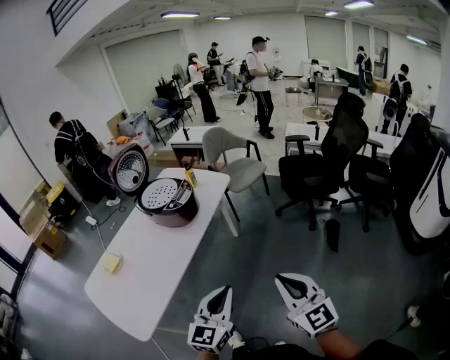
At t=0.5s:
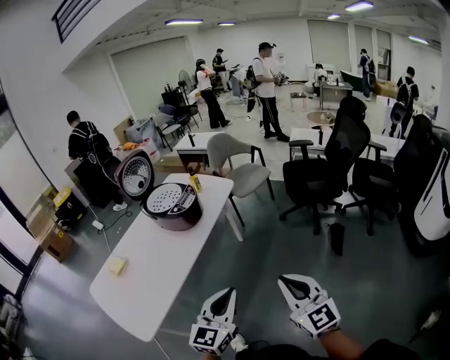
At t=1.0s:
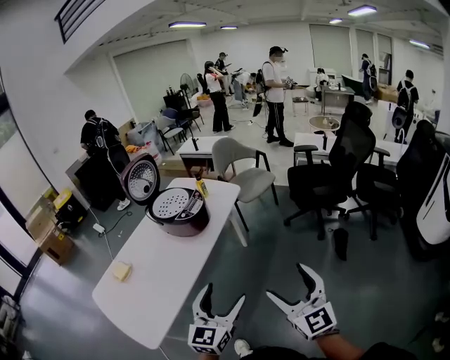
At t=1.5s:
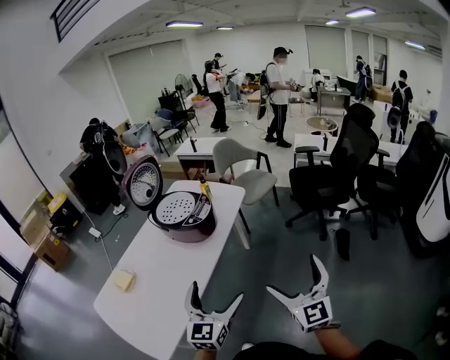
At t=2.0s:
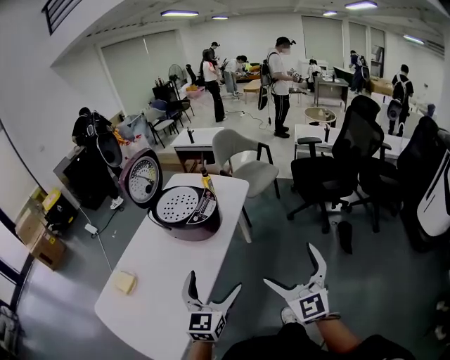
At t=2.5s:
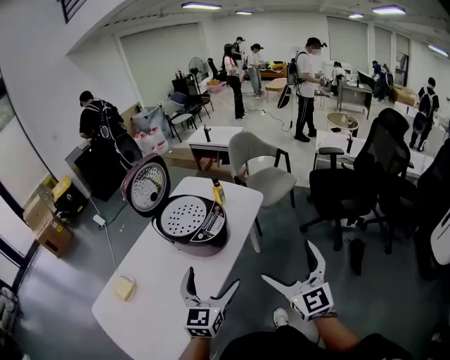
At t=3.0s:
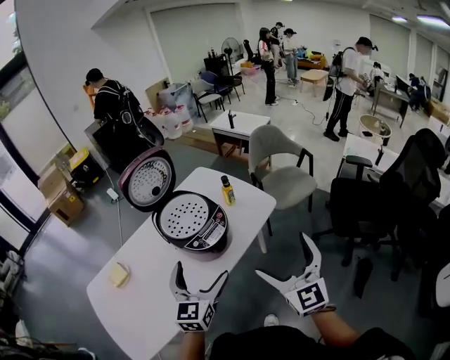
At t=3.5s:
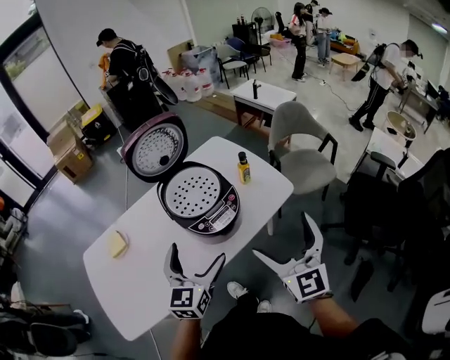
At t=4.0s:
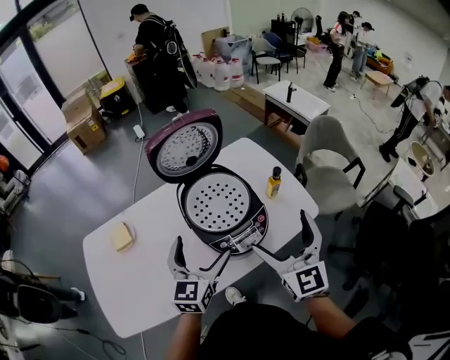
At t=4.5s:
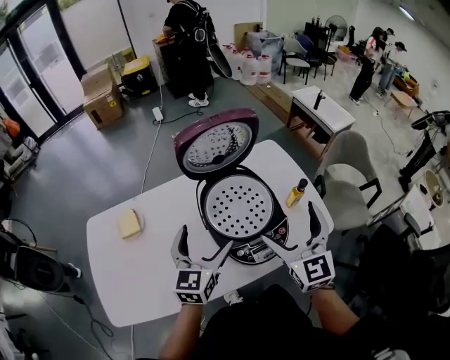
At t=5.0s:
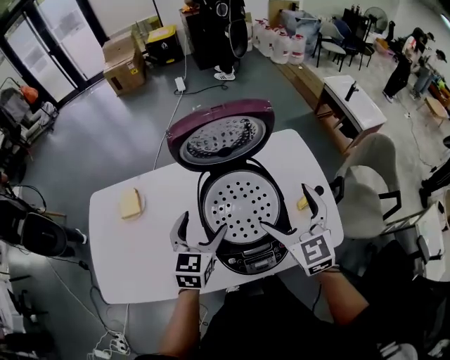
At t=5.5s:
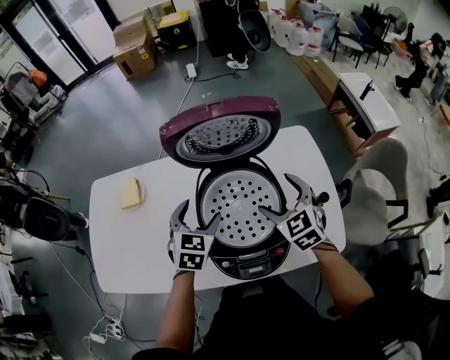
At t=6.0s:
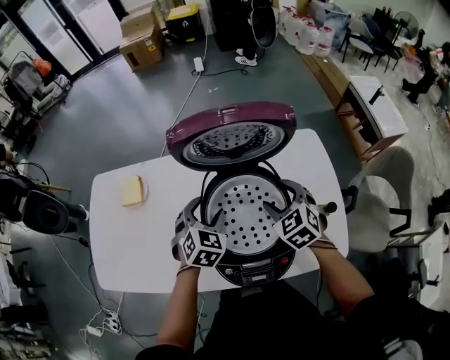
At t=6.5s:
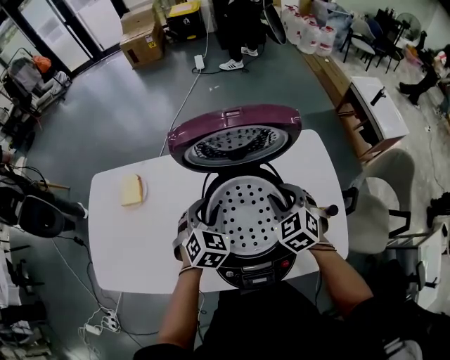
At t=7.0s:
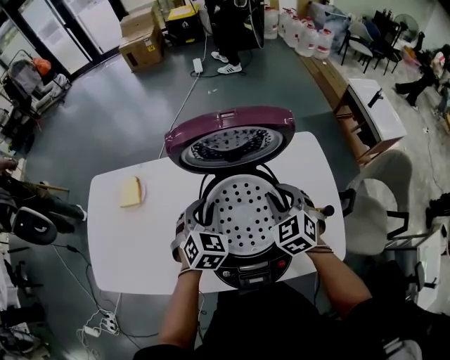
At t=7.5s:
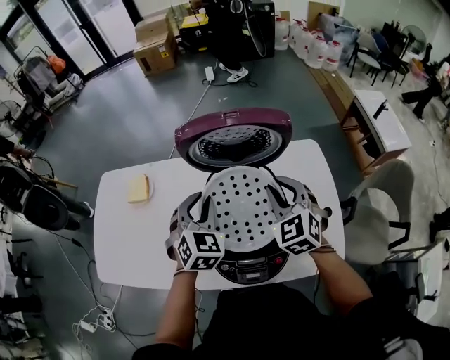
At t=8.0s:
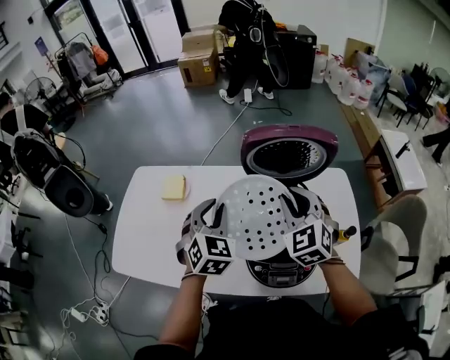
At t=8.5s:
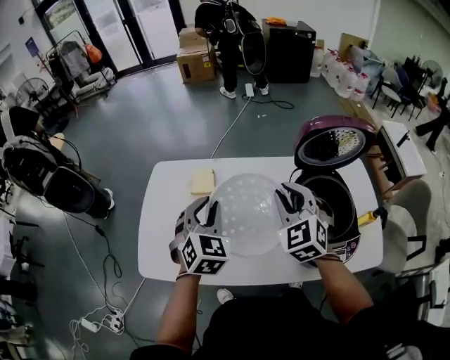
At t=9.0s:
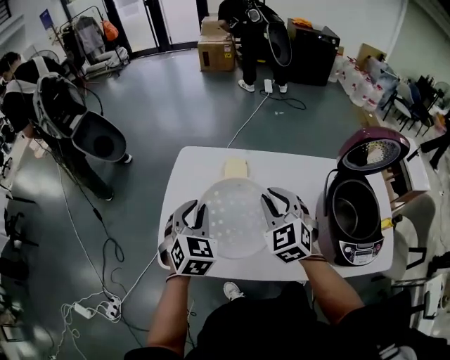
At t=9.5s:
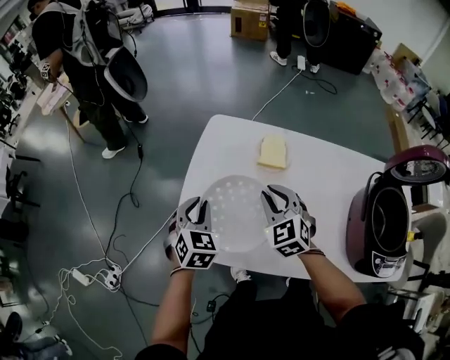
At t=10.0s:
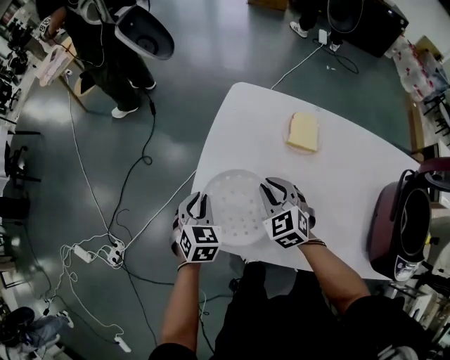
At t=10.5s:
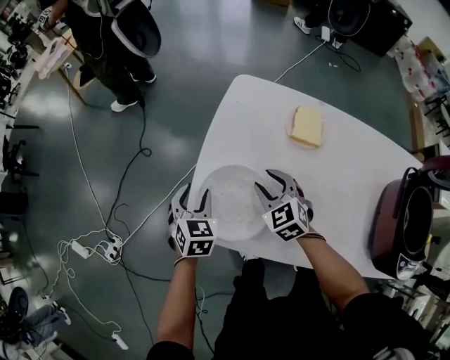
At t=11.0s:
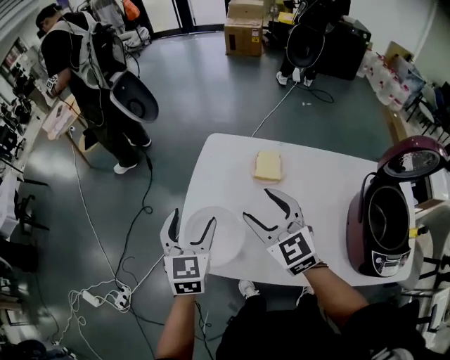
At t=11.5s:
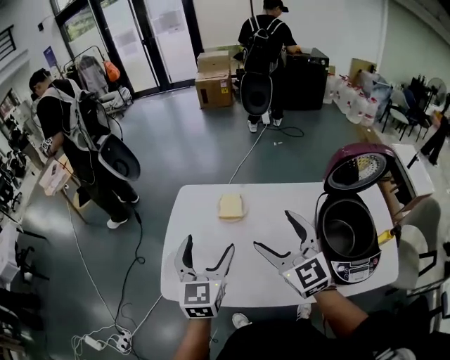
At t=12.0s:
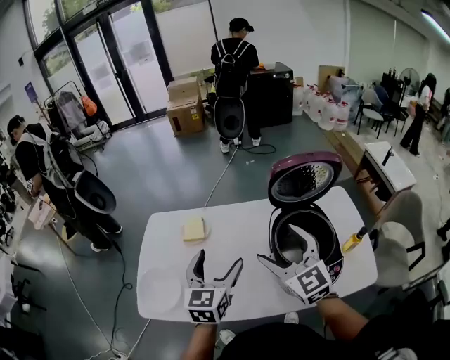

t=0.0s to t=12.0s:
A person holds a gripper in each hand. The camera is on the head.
t=0.0s to t=2.0s: The right gripper travels forward and to the left by some 20 cm, and opens up. The left gripper moves to the left and forward, about 20 cm, and opens up.
t=2.0s to t=4.0s: The left gripper moves about 35 cm, and turns by some 40 degrees; the right gripper ends up about 40 cm from where it was, and changes its angle by approximately 40 degrees.
t=4.0s to t=6.0s: The right gripper ends up some 35 cm from where it was, points its fingers approximately 40 degrees further downward, and closes its fingers; the left gripper changes place by roughly 20 cm, tips its fingers downward by roughly 30 degrees, and closes up.
t=6.0s to t=8.0s: The grippers both shift upward and to the left by approximately 15 cm. The right gripper swivels about 20 degrees, and closes its fingers.
t=8.0s to t=10.0s: The two grippers travel together, to the left, some 60 cm. Both grippers travel together downward, about 25 cm. The left gripper swivels about 30 degrees; the right gripper turns by approximately 30 degrees.
t=10.0s to t=12.0s: Both grippers are carried about 40 cm. The left gripper angles its fingers upward, by some 30 degrees, and opens up. The right gripper angles its fingers upward, by some 30 degrees, and opens up.

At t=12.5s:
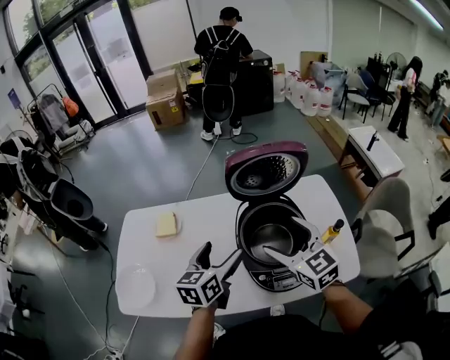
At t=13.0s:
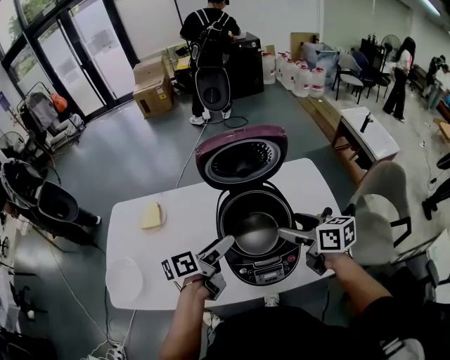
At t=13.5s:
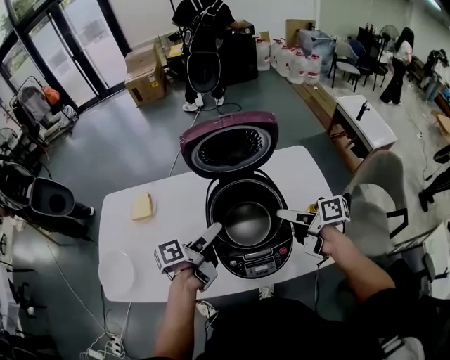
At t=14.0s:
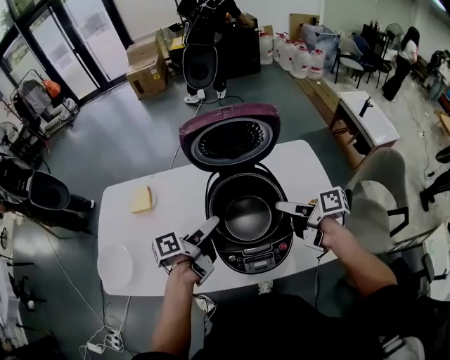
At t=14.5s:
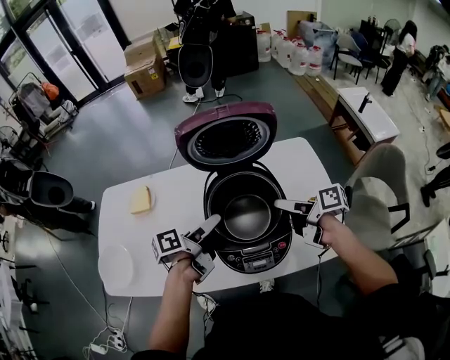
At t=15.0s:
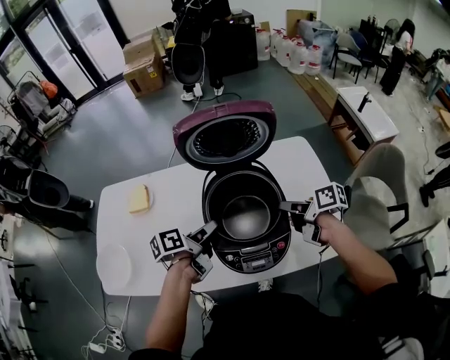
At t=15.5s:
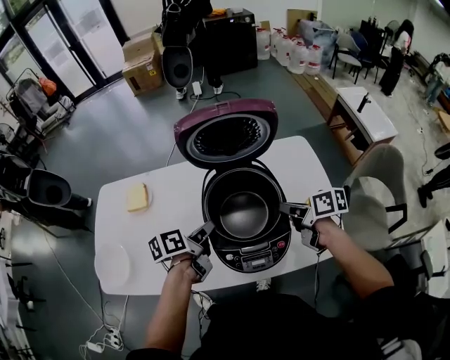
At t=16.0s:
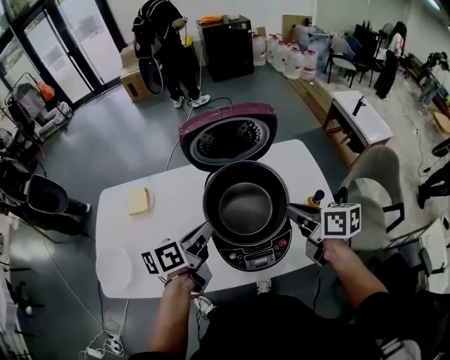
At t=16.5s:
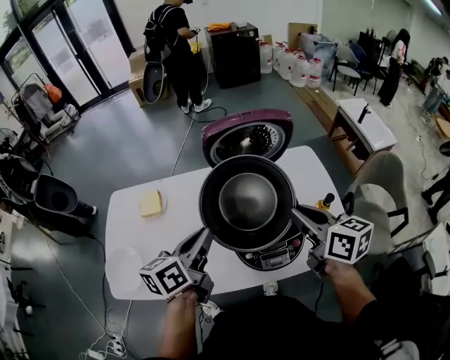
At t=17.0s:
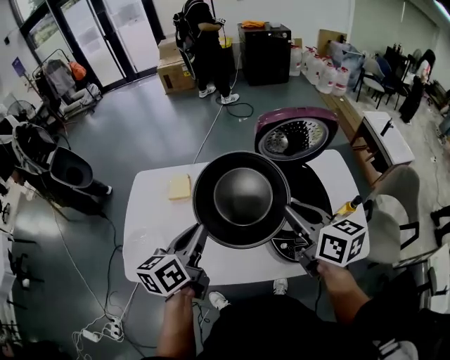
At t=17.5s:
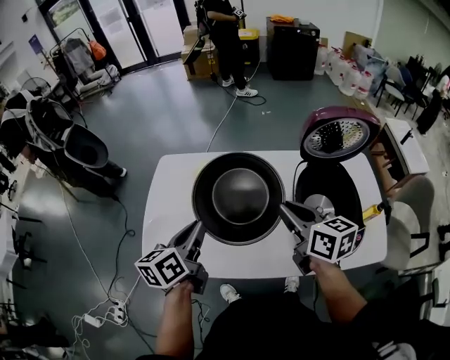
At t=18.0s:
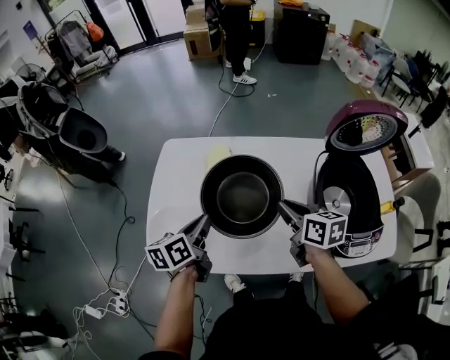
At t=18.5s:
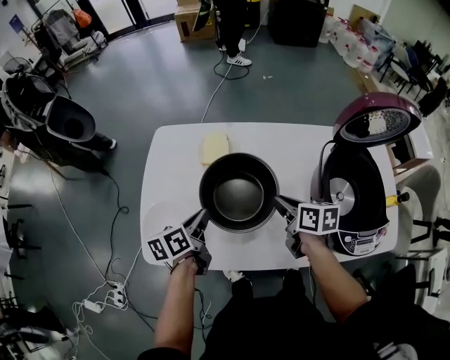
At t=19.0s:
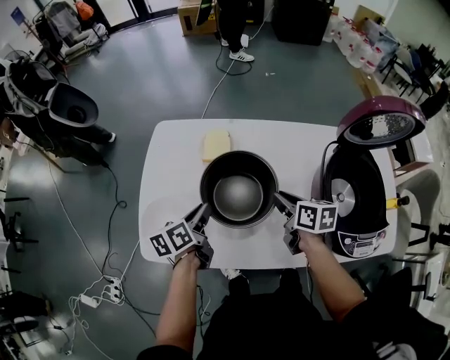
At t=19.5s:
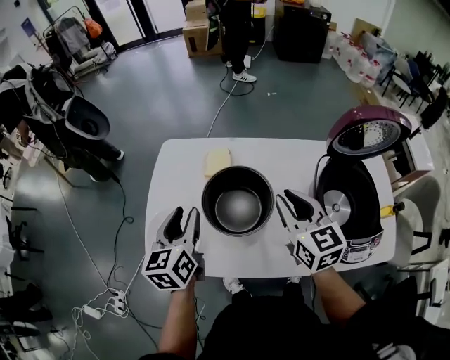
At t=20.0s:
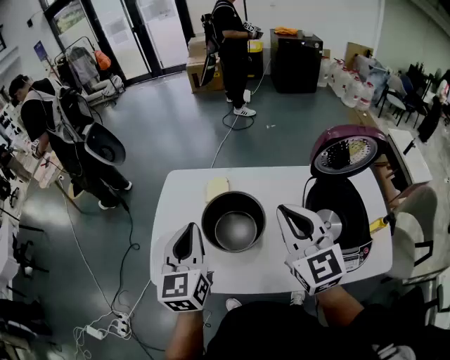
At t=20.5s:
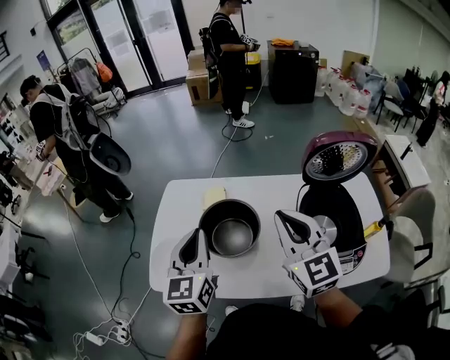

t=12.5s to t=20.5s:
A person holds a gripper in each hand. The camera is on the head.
t=12.5s to t=14.5s: The left gripper is displaced downward and to the right by approximately 10 cm, and rotates around the line of its fingers by some 50 degrees, counterclockwise from behind. Meanwhile the right gripper shifts some 20 cm downward and to the right, and twists some 70 degrees clockwise, seen from behind.
t=14.5s to t=16.5s: The left gripper travels upward and to the left by some 15 cm, changes its angle by about 40 degrees, and closes its fingers. Meanwhile the right gripper shifts some 15 cm upward, rotates roughly 50 degrees, and closes up.
t=16.5s to t=18.5s: Both grippers travel together to the left and downward, approximately 40 cm. The left gripper turns by about 30 degrees. The right gripper rotates about 20 degrees.
t=18.5s to t=20.5s: The two grippers go some 25 cm upward. The right gripper rolls counterclockwise, seen from behind, by approximately 50 degrees; the left gripper turns by roughly 50 degrees.

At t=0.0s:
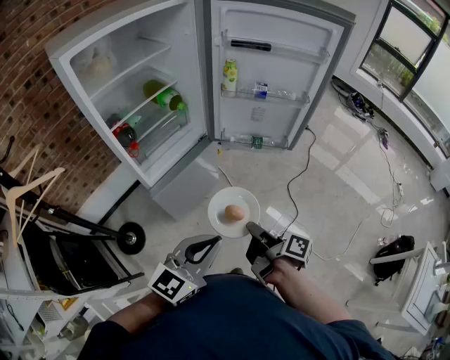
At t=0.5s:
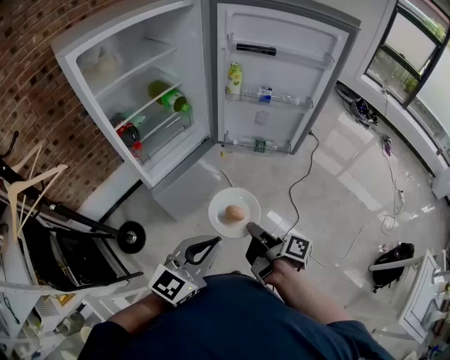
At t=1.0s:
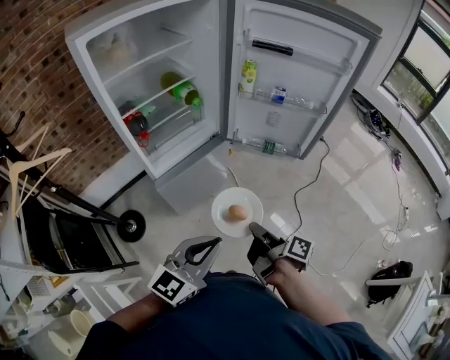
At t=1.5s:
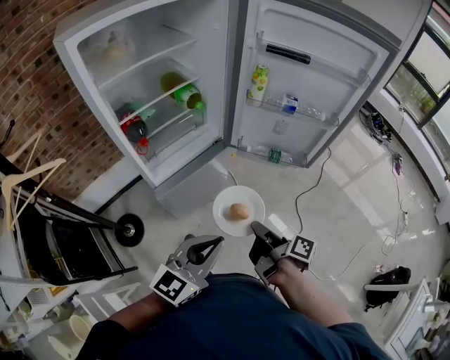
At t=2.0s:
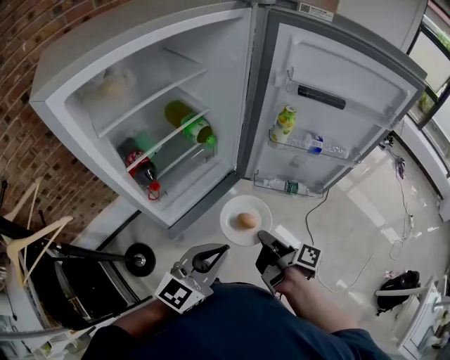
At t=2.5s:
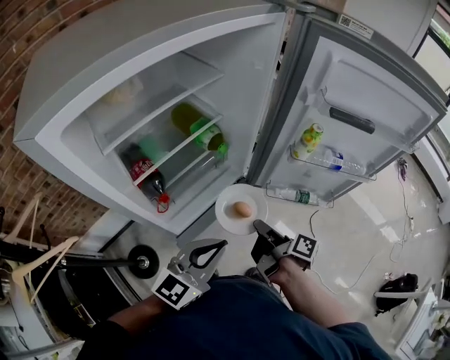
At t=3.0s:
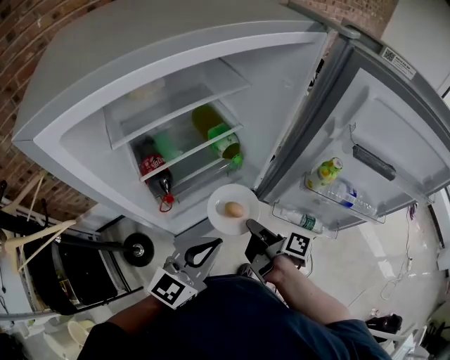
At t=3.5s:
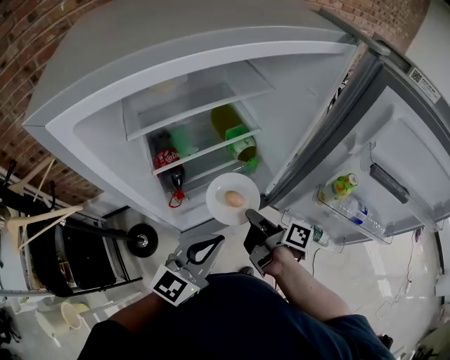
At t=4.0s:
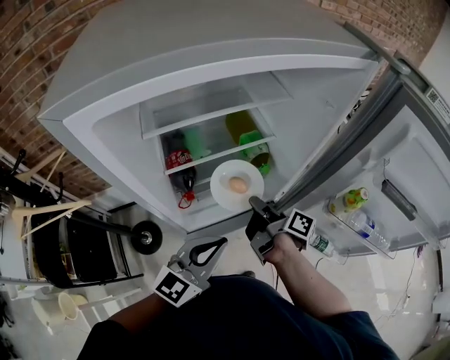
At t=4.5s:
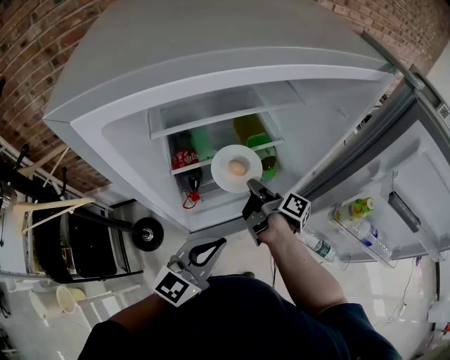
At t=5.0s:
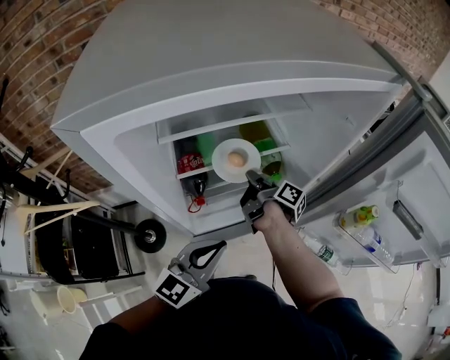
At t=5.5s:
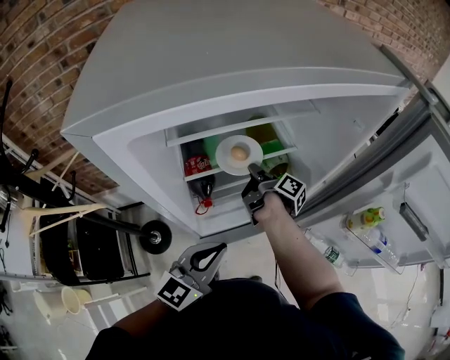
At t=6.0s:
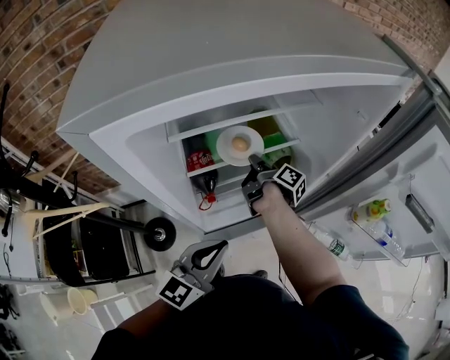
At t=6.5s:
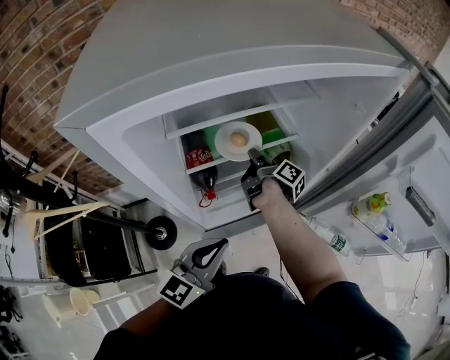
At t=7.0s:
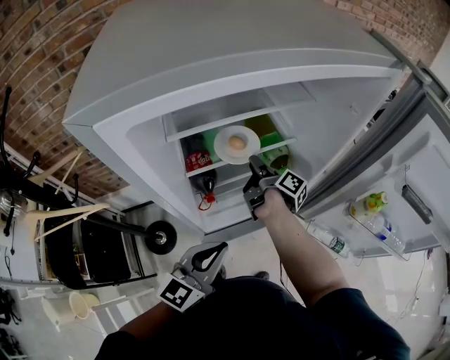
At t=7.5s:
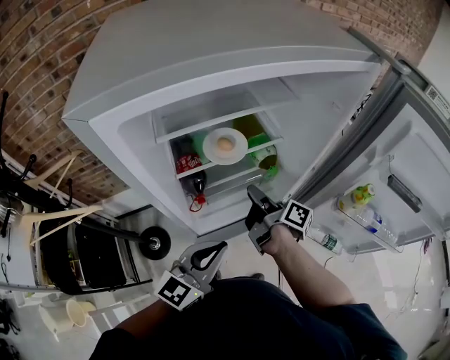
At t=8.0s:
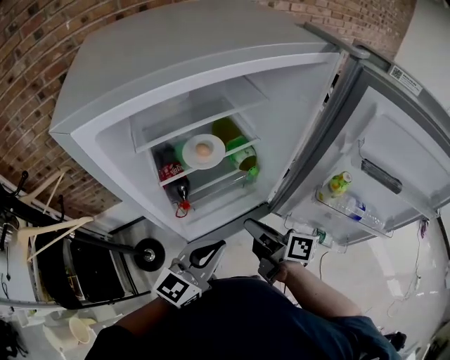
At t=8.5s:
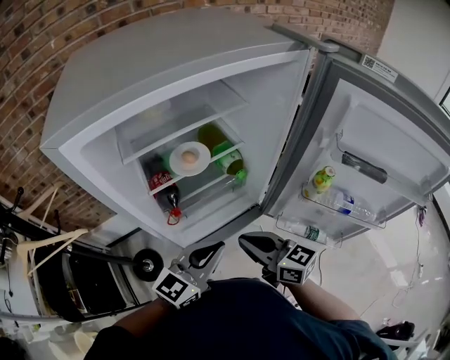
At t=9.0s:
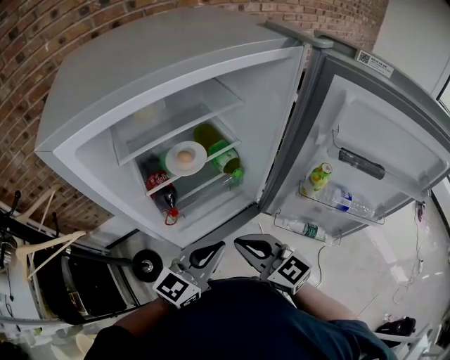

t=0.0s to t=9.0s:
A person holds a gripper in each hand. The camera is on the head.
t=0.0s to t=2.0s: The left gripper moves some 20 cm.
t=2.0s to t=4.5s: The left gripper shifts by some 20 cm, and changes its angle by some 30 degrees.
t=7.0s to t=9.0s: The left gripper ends up about 10 cm from where it was.
